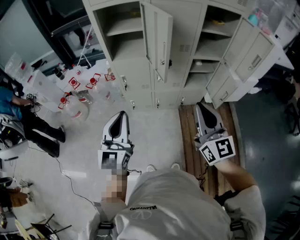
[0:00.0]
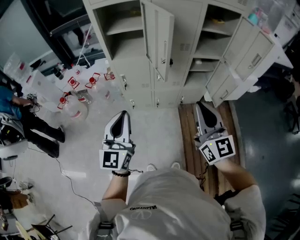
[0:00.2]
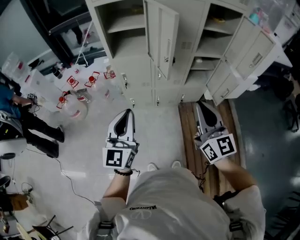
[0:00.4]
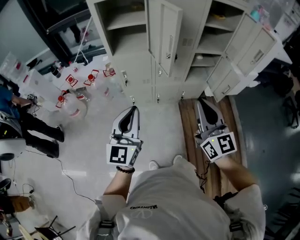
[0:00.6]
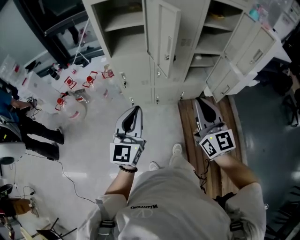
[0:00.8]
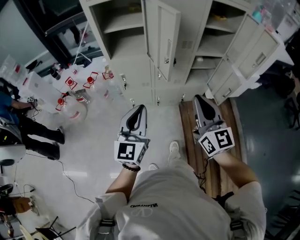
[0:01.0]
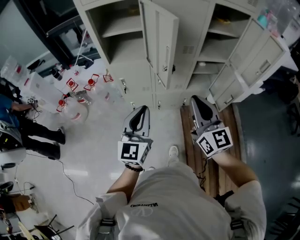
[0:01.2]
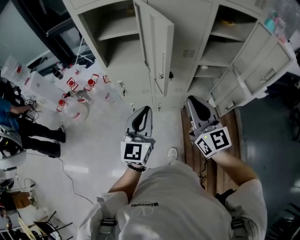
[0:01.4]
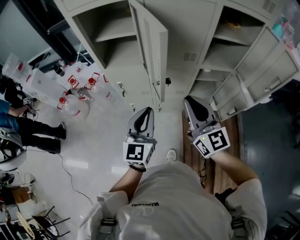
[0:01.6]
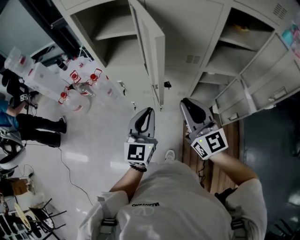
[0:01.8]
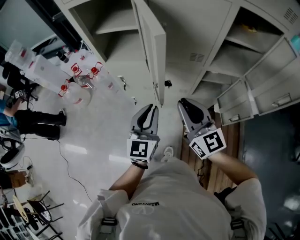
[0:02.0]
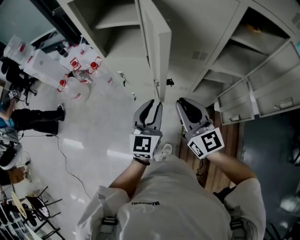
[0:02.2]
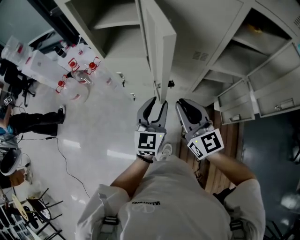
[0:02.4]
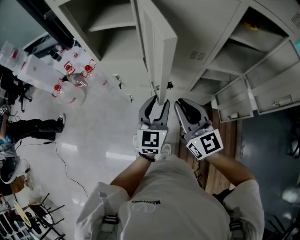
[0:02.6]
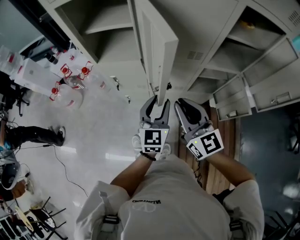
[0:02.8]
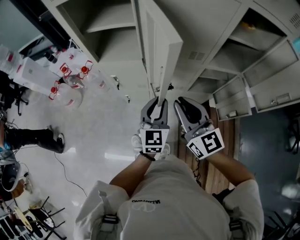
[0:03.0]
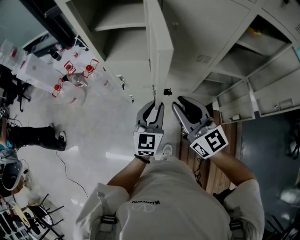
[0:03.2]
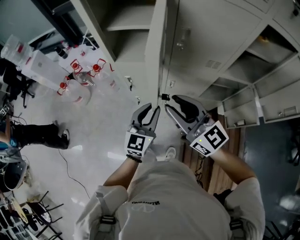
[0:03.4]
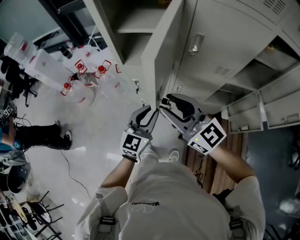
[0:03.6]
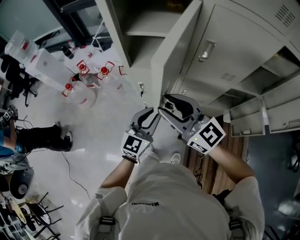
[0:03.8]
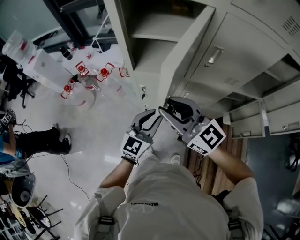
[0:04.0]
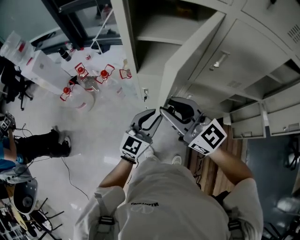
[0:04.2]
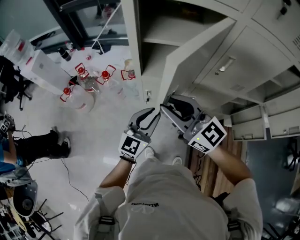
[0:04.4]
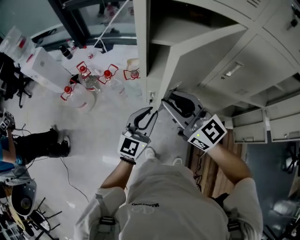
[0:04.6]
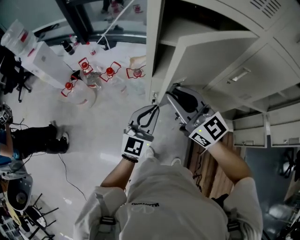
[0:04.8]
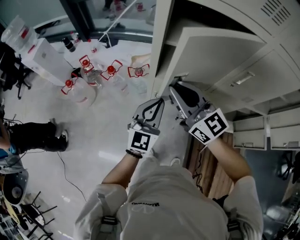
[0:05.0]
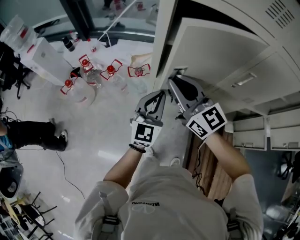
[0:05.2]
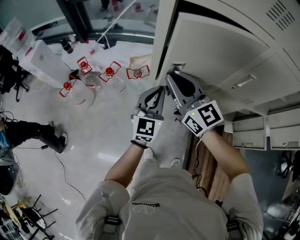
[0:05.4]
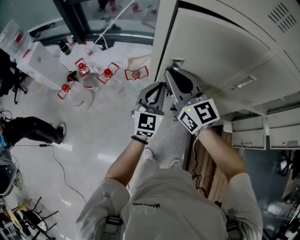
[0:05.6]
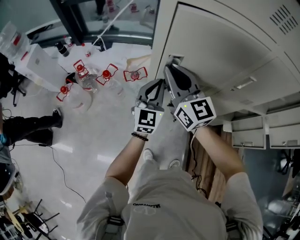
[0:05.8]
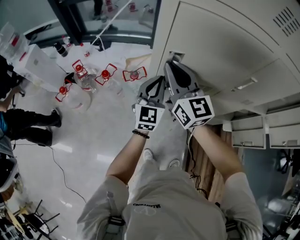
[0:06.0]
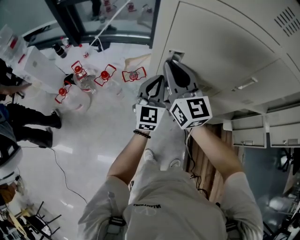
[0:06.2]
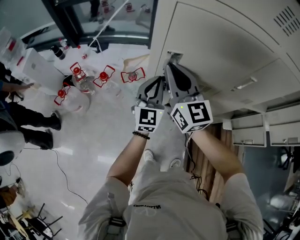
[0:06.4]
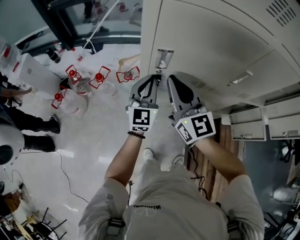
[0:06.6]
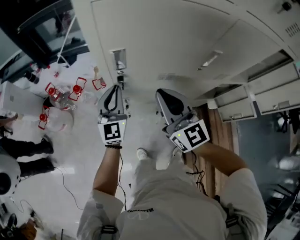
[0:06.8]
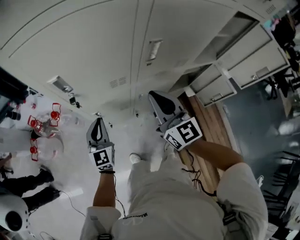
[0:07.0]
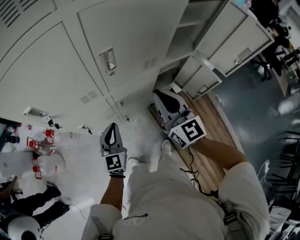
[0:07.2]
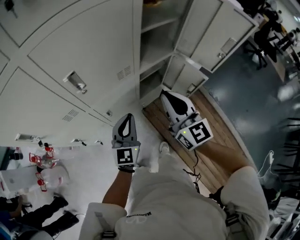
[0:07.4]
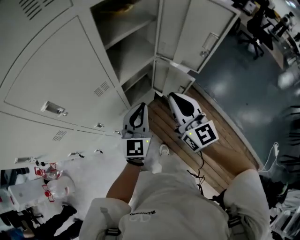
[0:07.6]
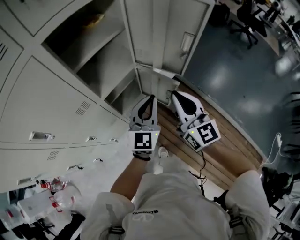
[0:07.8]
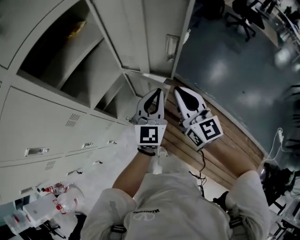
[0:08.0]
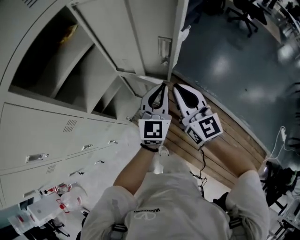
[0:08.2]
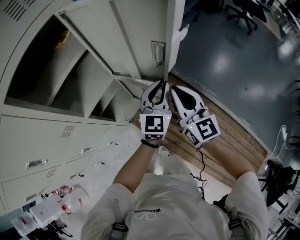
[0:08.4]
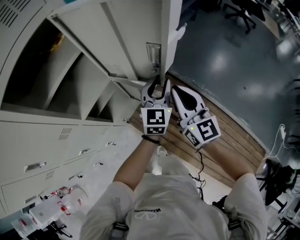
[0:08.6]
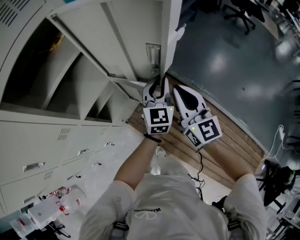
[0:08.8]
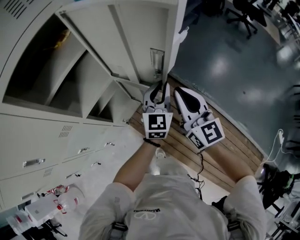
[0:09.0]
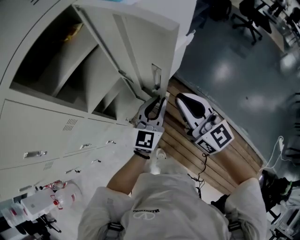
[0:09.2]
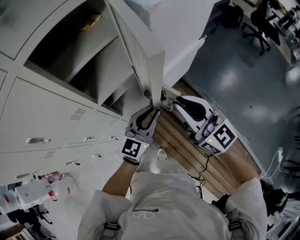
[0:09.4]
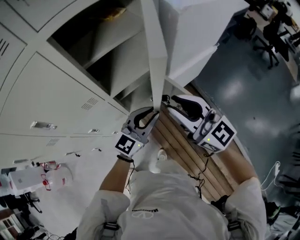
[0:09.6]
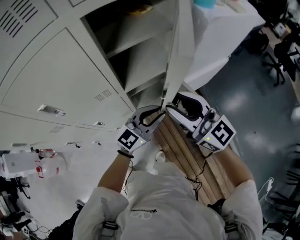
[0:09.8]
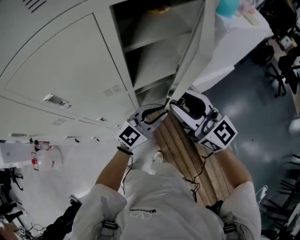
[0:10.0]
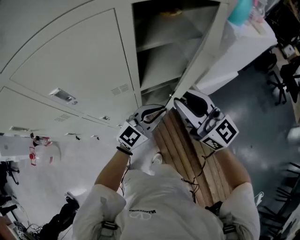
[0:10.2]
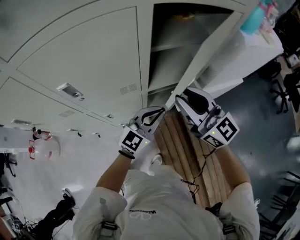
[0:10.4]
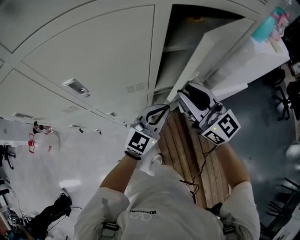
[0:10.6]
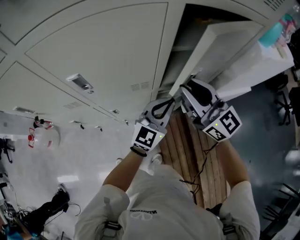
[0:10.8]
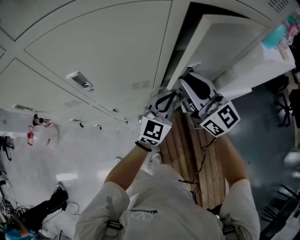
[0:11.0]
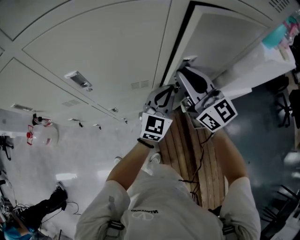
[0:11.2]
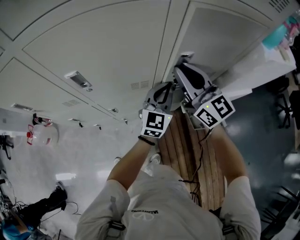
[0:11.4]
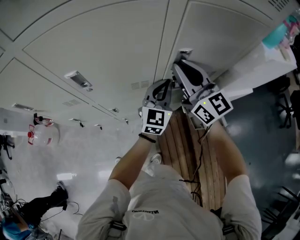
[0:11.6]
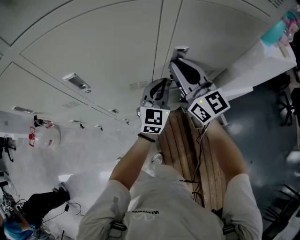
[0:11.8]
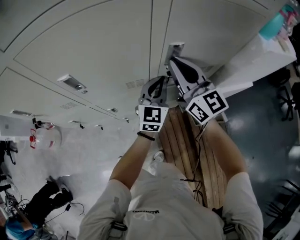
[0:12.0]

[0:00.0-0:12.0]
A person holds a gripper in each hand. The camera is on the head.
0:00.0 to 0:01.6: The right gripper shifts about 20 cm forward; the left gripper heads forward, to the right and downward, covering roughly 25 cm.
0:01.6 to 0:03.0: The right gripper moves forward, about 5 cm, while the left gripper goes some 15 cm forward, downward and to the right.
0:03.0 to 0:04.4: The grippers both shift to the left and forward by roughly 25 cm. The right gripper swivels about 30 degrees.
0:04.4 to 0:06.0: Both grippers move forward, some 20 cm. The right gripper turns by some 30 degrees. The left gripper closes its fingers.
0:06.0 to 0:07.6: Both grippers are carried about 60 cm. The left gripper turns by approximately 40 degrees. Meanwhile the right gripper turns by some 40 degrees.
0:07.6 to 0:09.0: Both grippers travel together to the right and forward, about 30 cm.
0:09.0 to 0:10.4: The right gripper ends up approximately 30 cm from where it was, changes its angle by about 50 degrees, and opens its fingers. Meanwhile the left gripper moves about 35 cm.
0:10.4 to 0:12.0: The grippers both shift forward by about 10 cm. The left gripper turns by about 30 degrees. The right gripper closes.

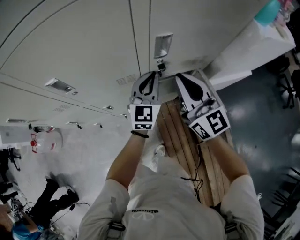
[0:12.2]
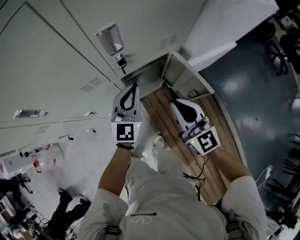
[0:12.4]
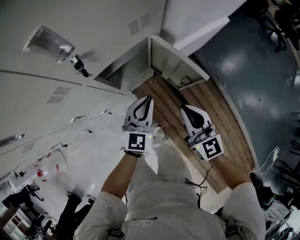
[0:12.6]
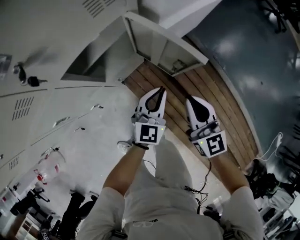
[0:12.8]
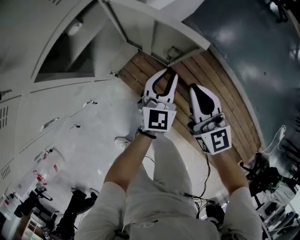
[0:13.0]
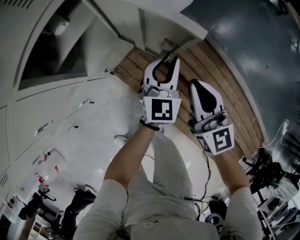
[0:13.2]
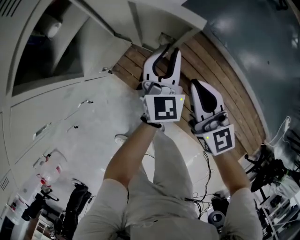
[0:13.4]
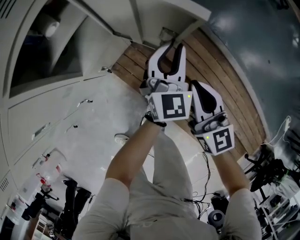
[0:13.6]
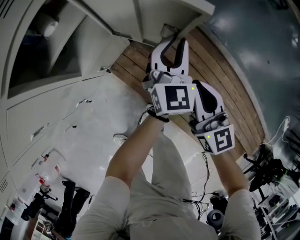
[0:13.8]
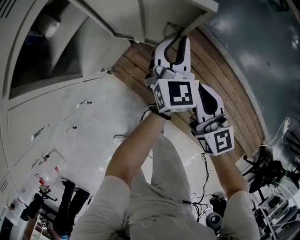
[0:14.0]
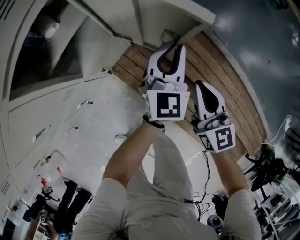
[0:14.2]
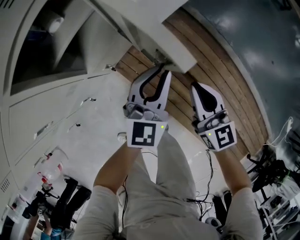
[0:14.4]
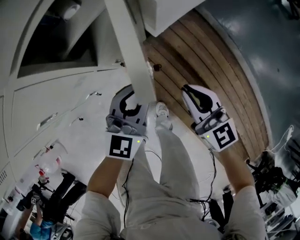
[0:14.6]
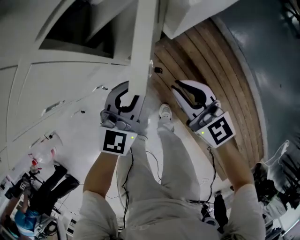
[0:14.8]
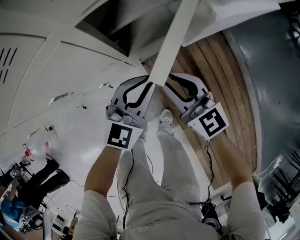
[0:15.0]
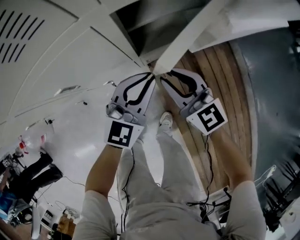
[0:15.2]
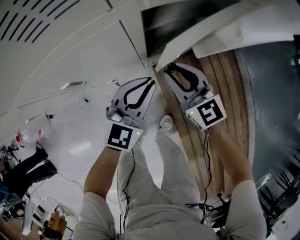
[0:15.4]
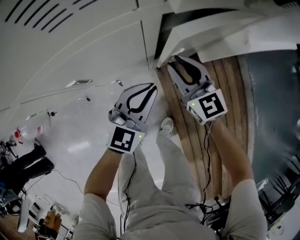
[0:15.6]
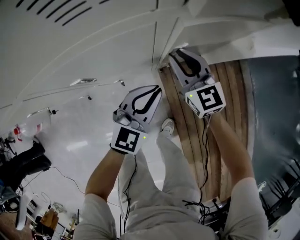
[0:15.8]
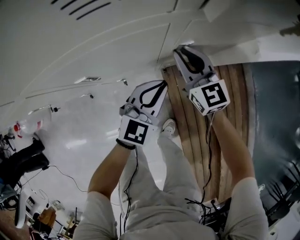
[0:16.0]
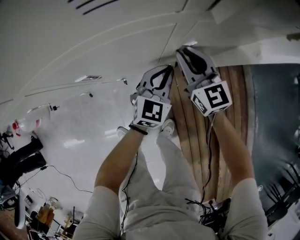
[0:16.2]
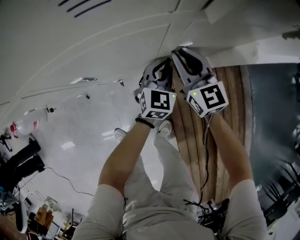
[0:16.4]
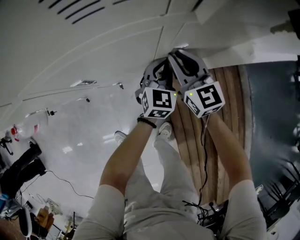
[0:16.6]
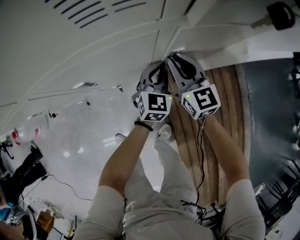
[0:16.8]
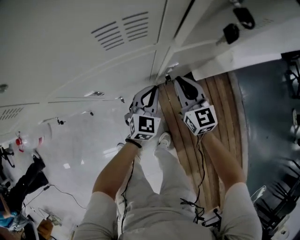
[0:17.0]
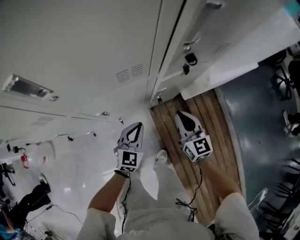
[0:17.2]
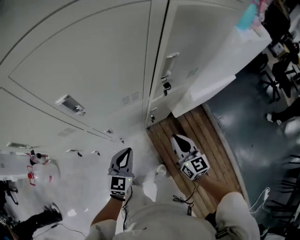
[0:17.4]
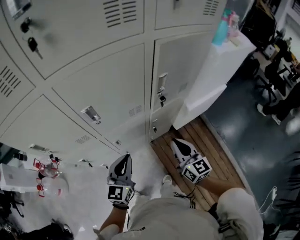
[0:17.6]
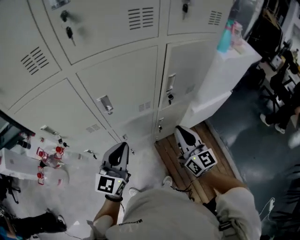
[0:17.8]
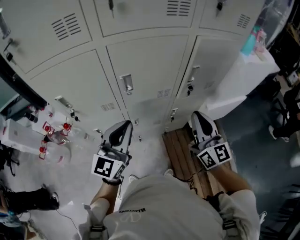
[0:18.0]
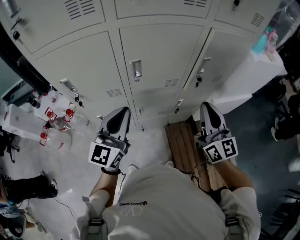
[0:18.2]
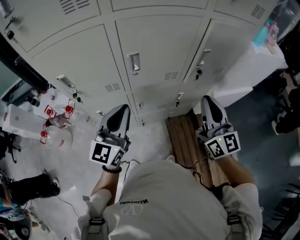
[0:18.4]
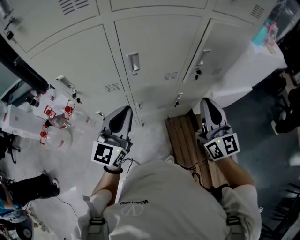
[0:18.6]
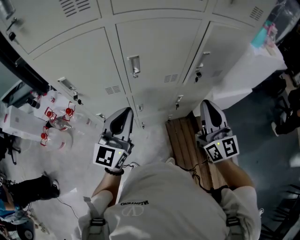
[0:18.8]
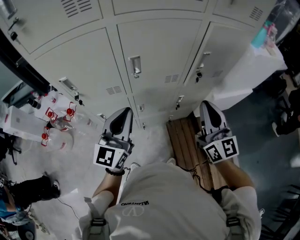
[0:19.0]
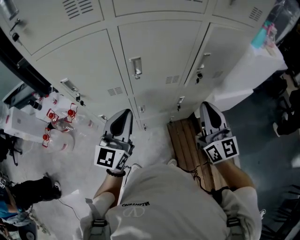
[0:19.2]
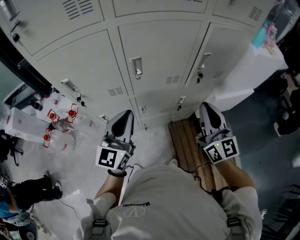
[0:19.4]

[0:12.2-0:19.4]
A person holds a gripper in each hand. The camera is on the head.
0:12.2 to 0:13.6: The right gripper heads downward, covering about 35 cm, and turns by some 40 degrees; the left gripper ends up some 50 cm from where it was, and changes its angle by about 30 degrees.
0:13.6 to 0:15.0: The two grippers go about 25 cm to the left. The right gripper swivels roughly 40 degrees.
0:15.0 to 0:16.6: The right gripper goes roughly 15 cm forward and to the left, while the left gripper heads forward, downward and to the left, covering some 15 cm, and turns by some 30 degrees.
0:16.6 to 0:18.0: The left gripper shifts about 70 cm upward, backward and to the left, and tips its fingers upward by roughly 30 degrees, while the right gripper is displaced upward and backward by roughly 50 cm, and turns by approximately 30 degrees.
0:18.0 to 0:19.4: There are only small adjustments of the grippers.

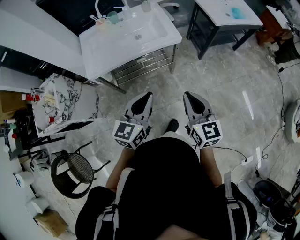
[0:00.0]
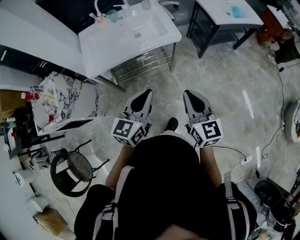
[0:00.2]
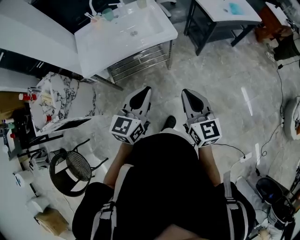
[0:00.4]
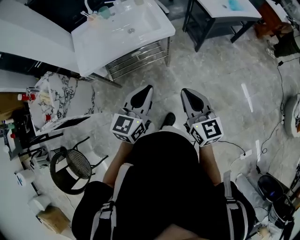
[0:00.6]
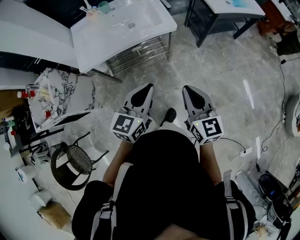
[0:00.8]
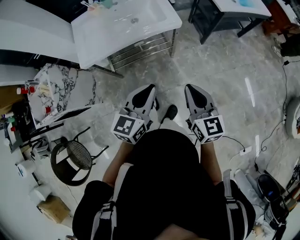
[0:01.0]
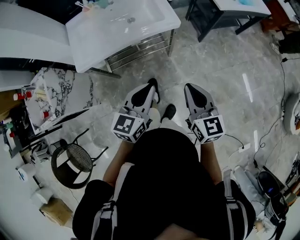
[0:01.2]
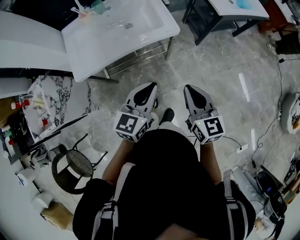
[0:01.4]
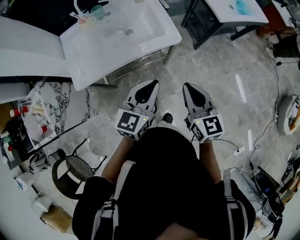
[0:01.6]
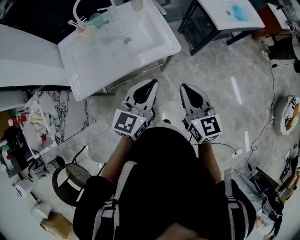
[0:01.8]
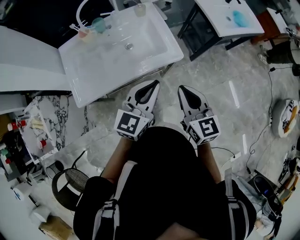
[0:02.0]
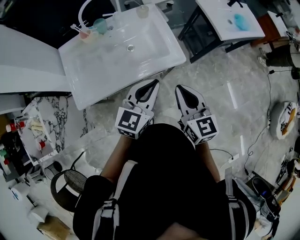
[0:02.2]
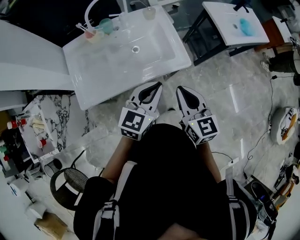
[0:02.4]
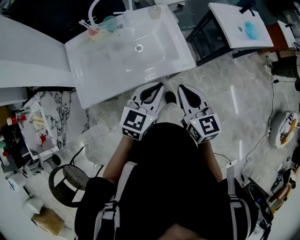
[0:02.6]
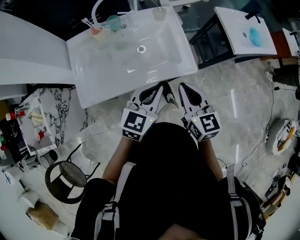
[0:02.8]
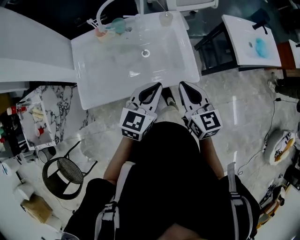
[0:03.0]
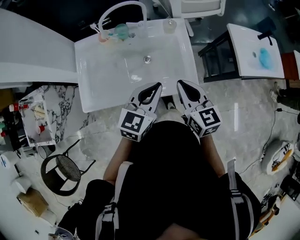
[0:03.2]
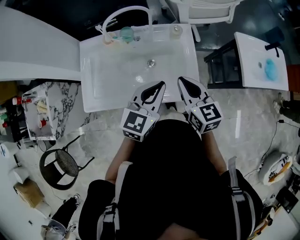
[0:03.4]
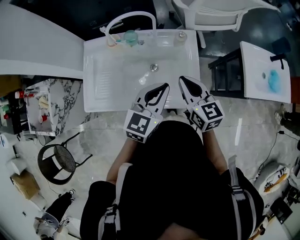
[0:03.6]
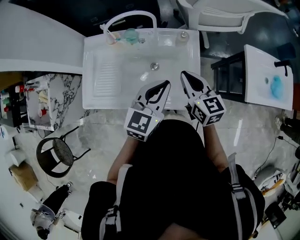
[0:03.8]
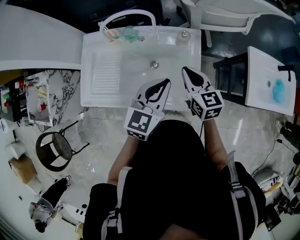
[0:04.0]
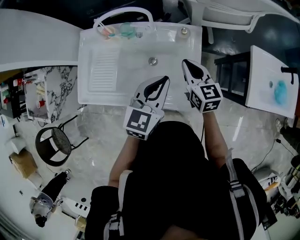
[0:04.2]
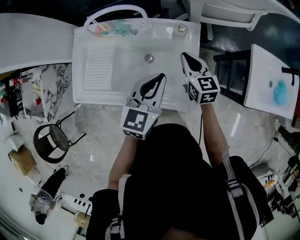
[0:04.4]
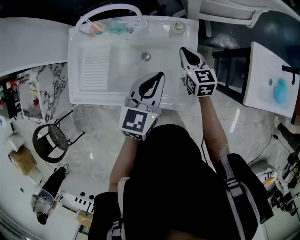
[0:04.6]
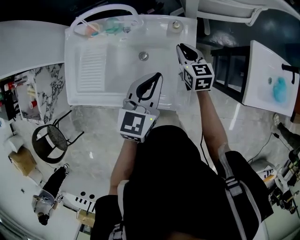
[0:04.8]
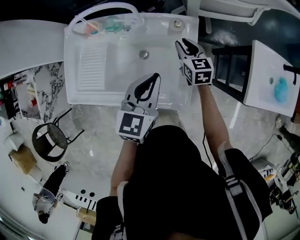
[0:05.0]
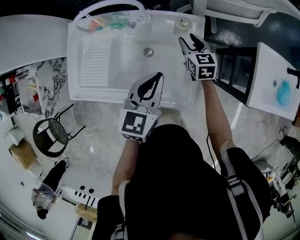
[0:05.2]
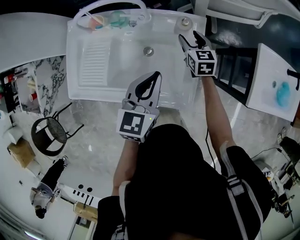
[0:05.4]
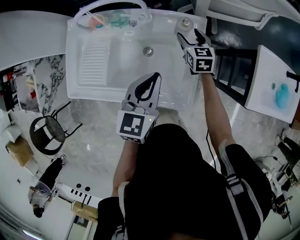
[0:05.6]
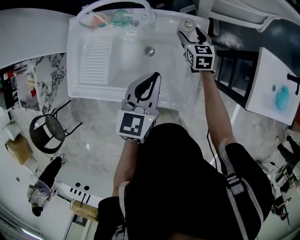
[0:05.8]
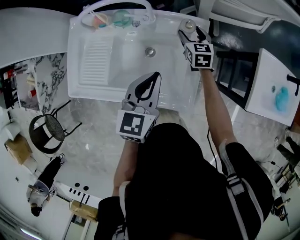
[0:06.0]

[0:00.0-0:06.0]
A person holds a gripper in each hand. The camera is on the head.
0:00.0 to 0:01.6: Both grippers move forward, some 15 cm.
0:01.6 to 0:03.0: The two grippers go some 20 cm forward and to the left.
0:03.0 to 0:04.4: The left gripper heads forward and to the right, covering approximately 20 cm, and rotates roughly 20 degrees, while the right gripper moves forward and downward, approximately 30 cm.
0:04.4 to 0:06.0: The right gripper shifts roughly 15 cm forward and downward, and opens.
